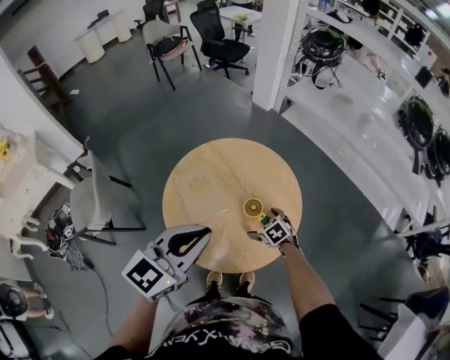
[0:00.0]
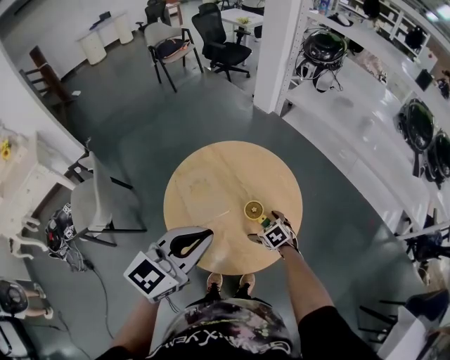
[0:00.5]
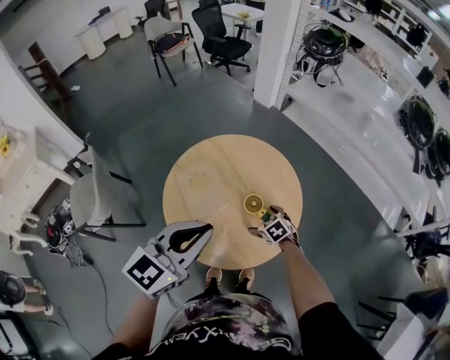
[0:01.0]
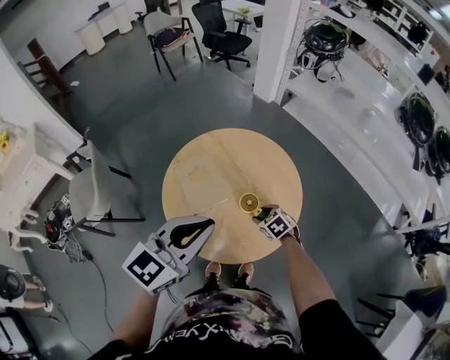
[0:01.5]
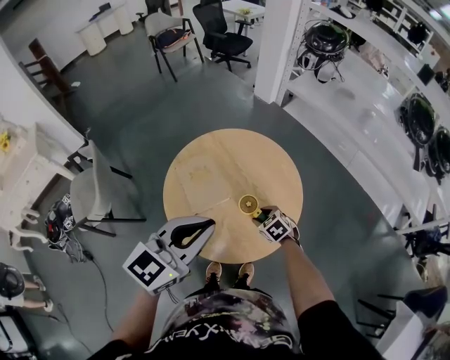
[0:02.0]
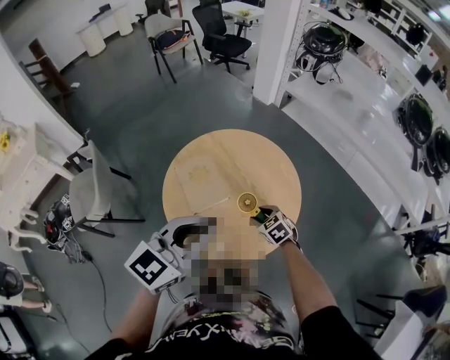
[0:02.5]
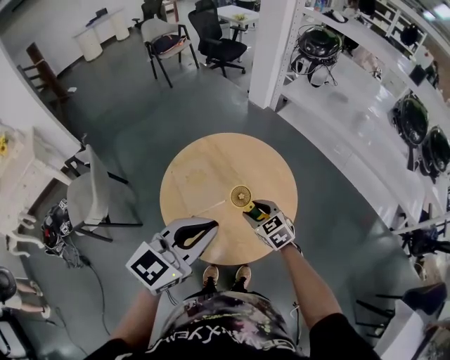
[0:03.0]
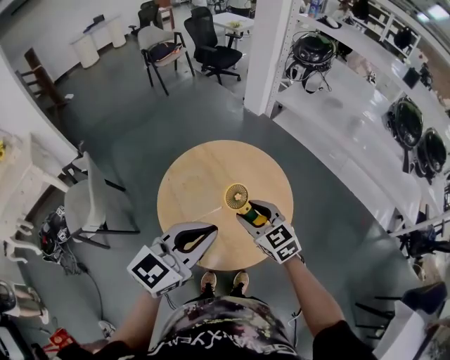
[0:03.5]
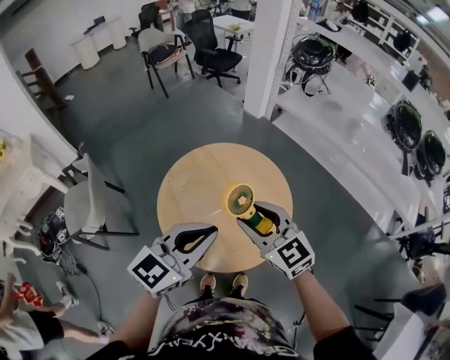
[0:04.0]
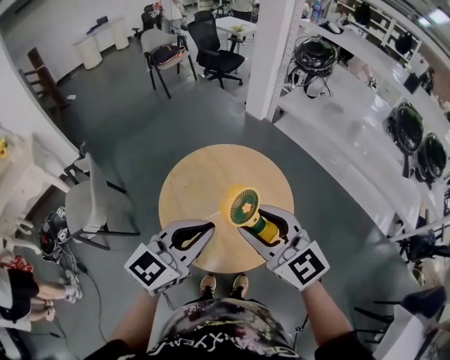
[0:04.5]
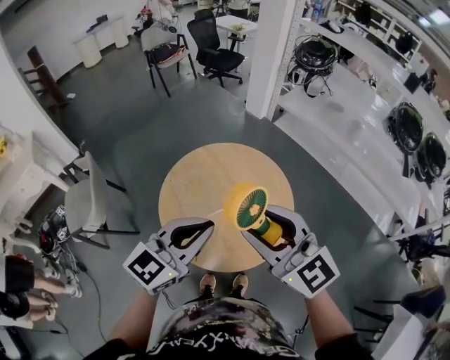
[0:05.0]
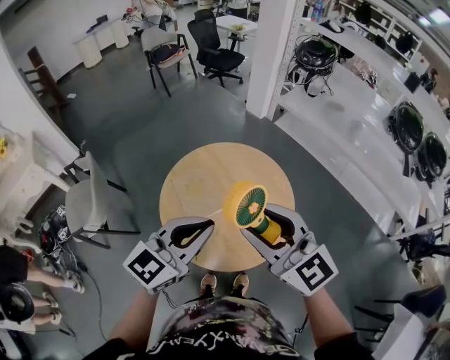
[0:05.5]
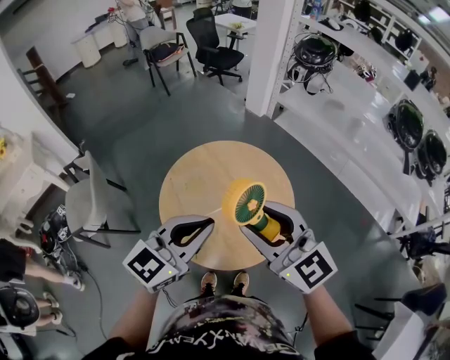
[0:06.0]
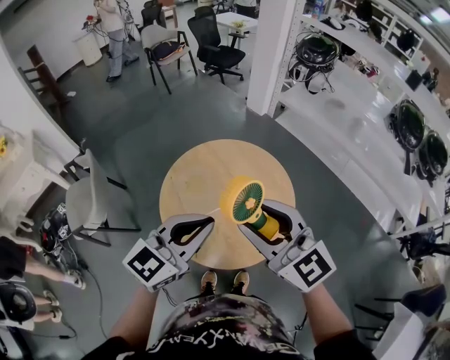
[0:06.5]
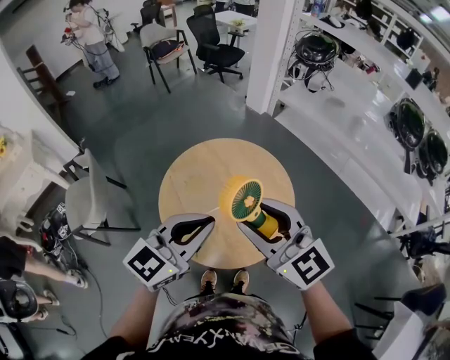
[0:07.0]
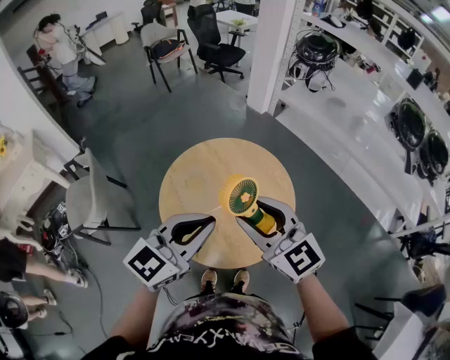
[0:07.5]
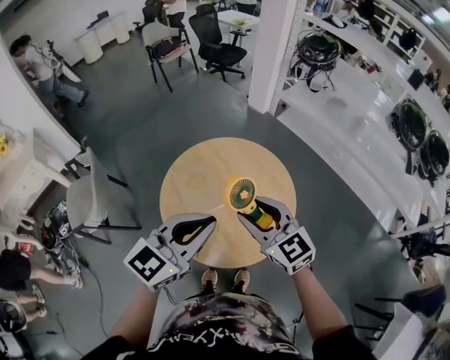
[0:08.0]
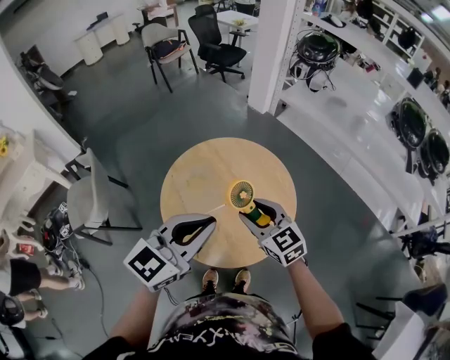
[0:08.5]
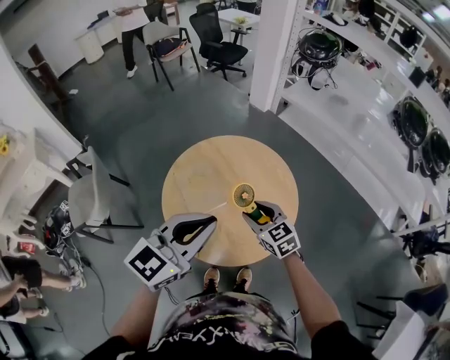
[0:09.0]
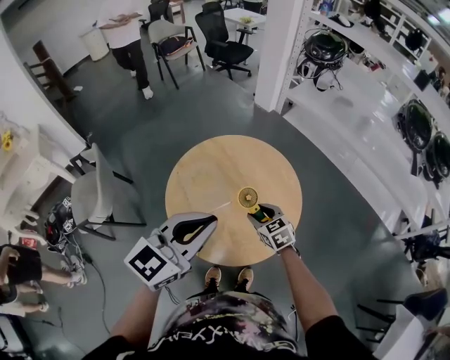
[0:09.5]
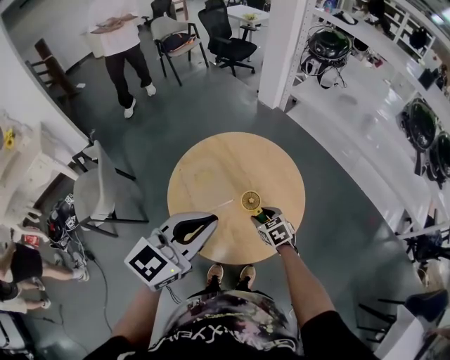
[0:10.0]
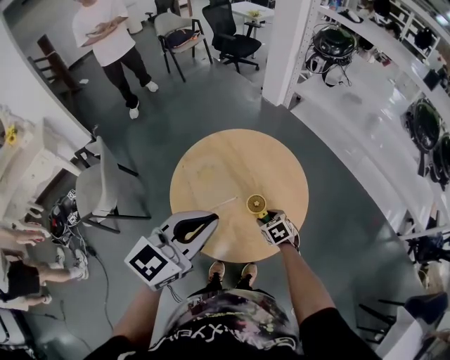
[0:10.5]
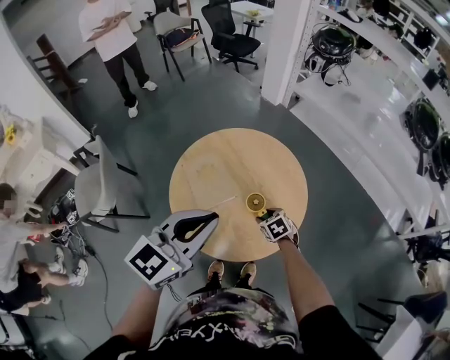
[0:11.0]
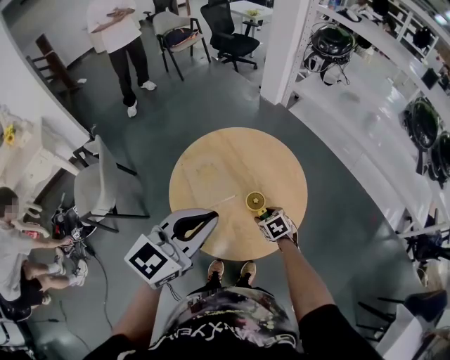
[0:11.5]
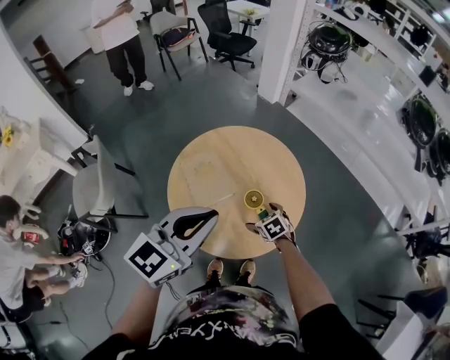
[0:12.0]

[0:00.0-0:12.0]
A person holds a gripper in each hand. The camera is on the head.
0:00.0 to 0:02.0: The right gripper closes.
0:02.0 to 0:04.0: The right gripper is displaced upward by some 35 cm, and points its fingers approximately 40 degrees further upward.
0:04.0 to 0:06.0: The right gripper goes roughly 10 cm upward.
0:06.0 to 0:08.0: The right gripper travels downward by about 10 cm.
0:08.0 to 0:10.0: The right gripper is displaced downward by about 30 cm, and angles its fingers downward, by some 30 degrees.
0:10.0 to 0:12.0: The right gripper opens.

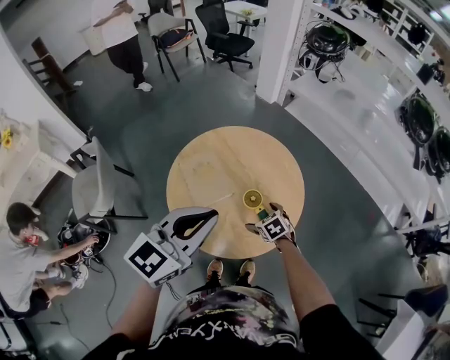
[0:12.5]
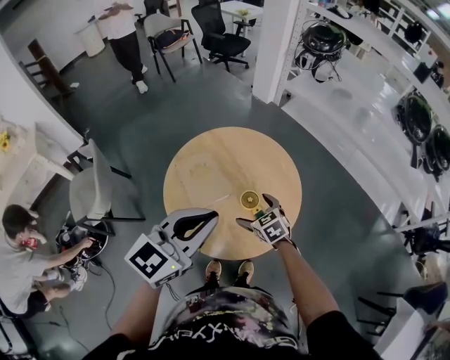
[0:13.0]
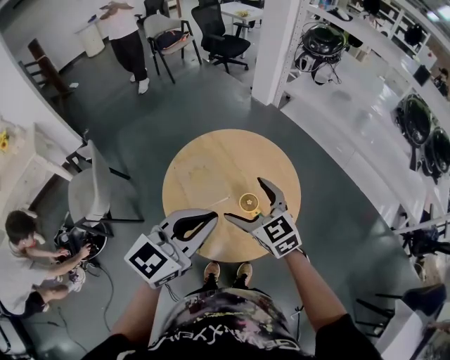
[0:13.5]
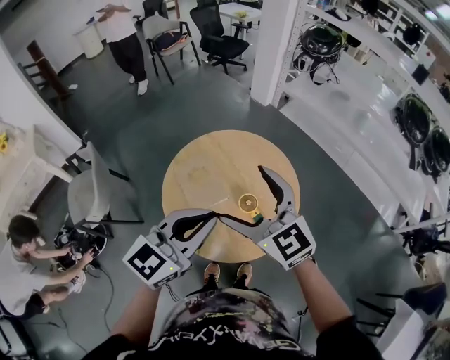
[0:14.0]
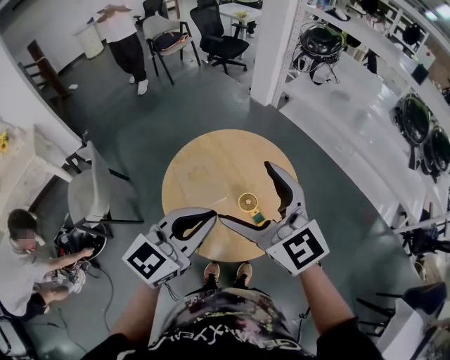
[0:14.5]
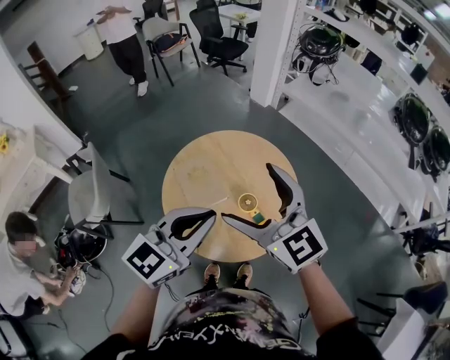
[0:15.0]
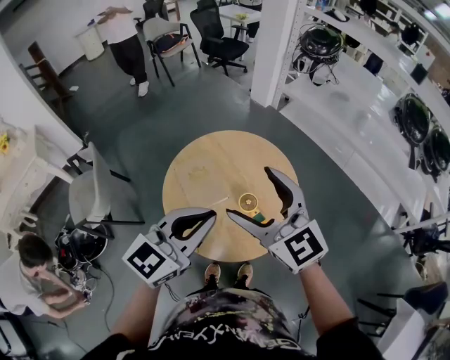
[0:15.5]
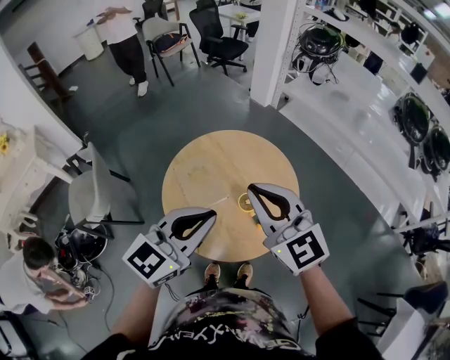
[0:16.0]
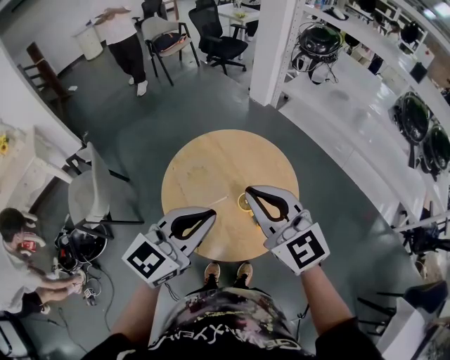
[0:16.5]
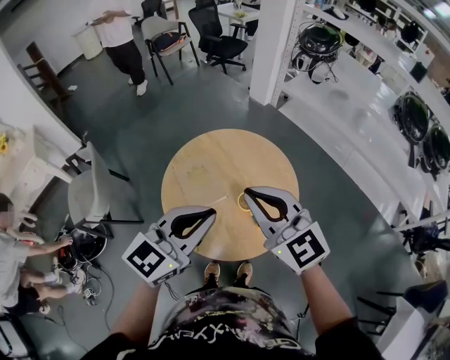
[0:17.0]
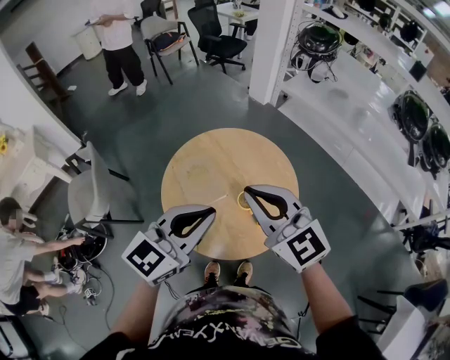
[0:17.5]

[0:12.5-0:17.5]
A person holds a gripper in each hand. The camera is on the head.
0:12.5 to 0:15.0: The right gripper travels upward by about 40 cm, and angles its fingers upward, by roughly 50 degrees.
0:15.0 to 0:17.5: The right gripper closes up.

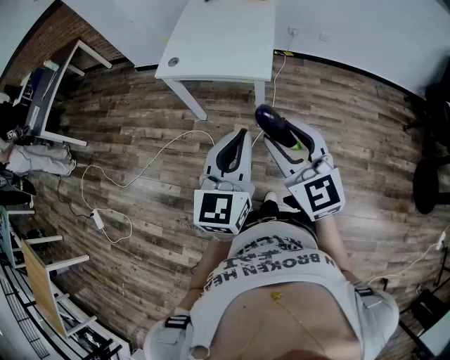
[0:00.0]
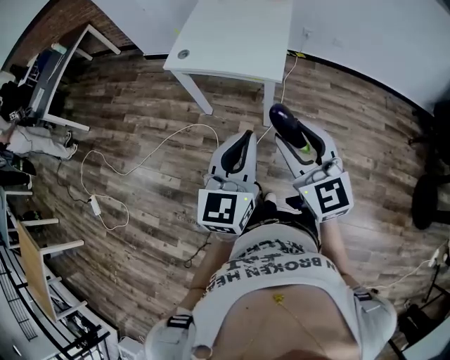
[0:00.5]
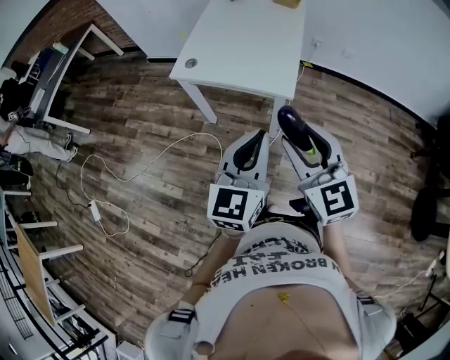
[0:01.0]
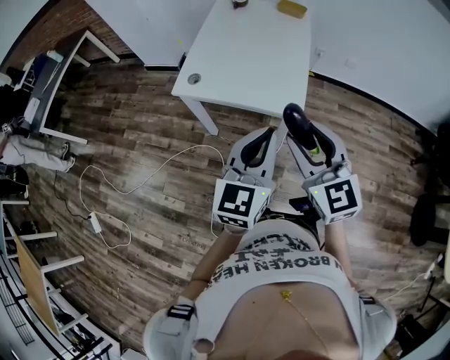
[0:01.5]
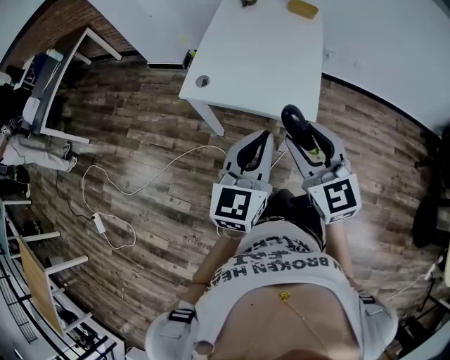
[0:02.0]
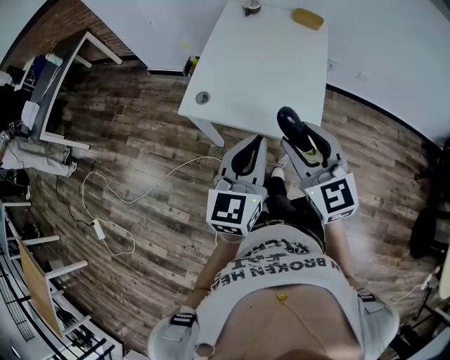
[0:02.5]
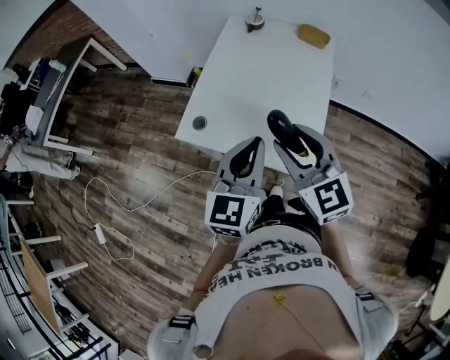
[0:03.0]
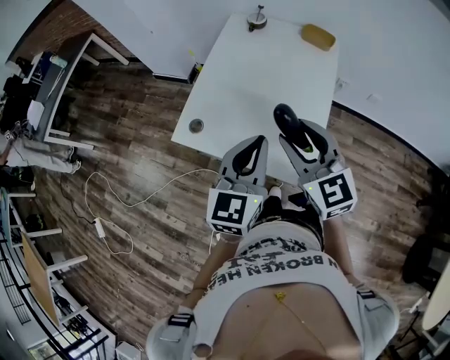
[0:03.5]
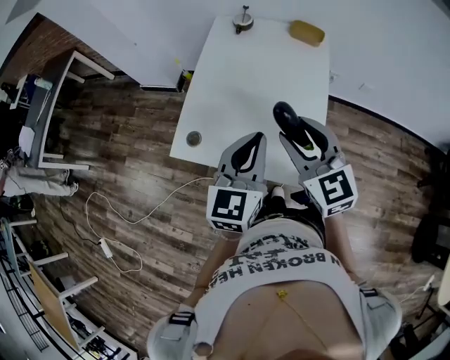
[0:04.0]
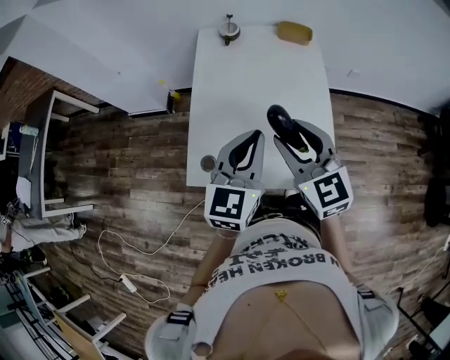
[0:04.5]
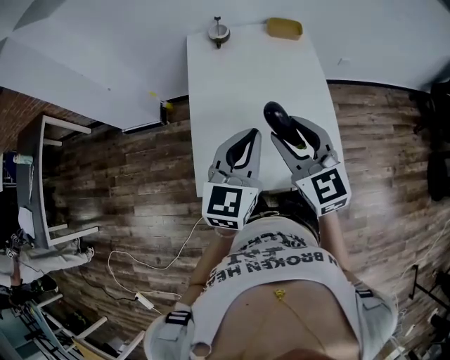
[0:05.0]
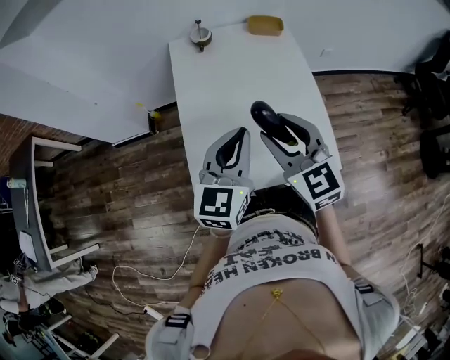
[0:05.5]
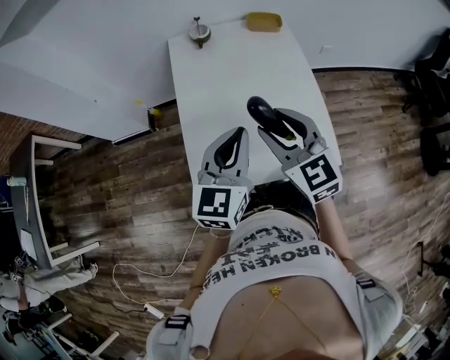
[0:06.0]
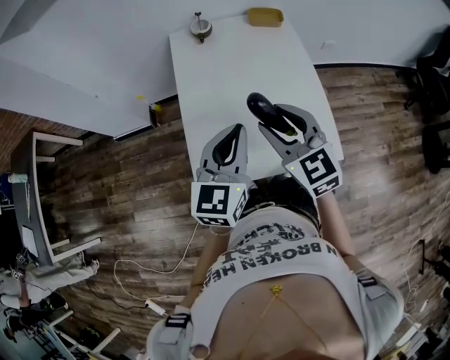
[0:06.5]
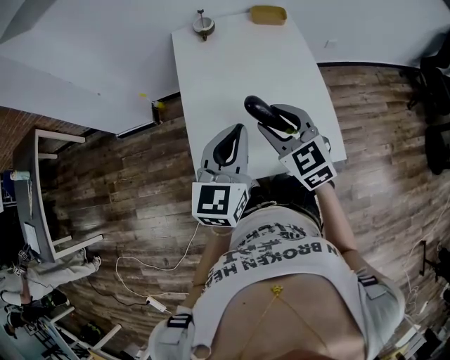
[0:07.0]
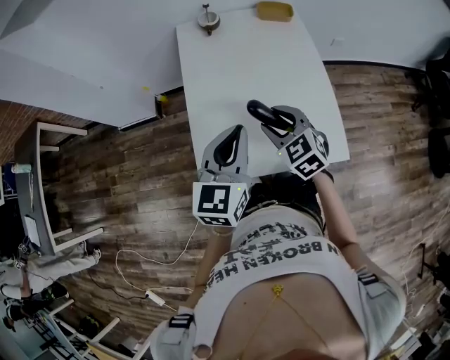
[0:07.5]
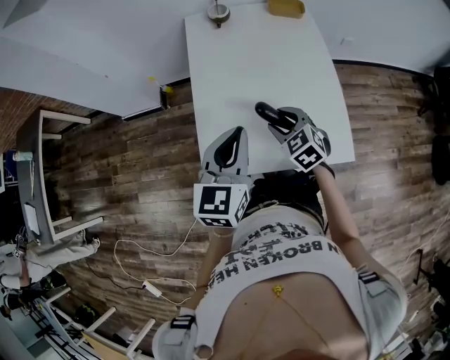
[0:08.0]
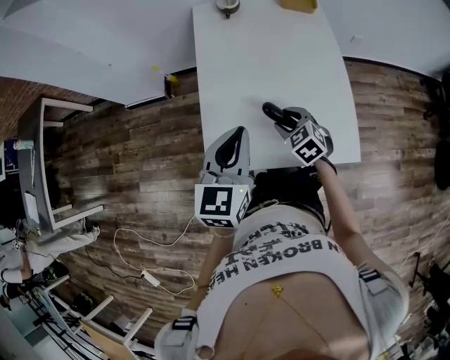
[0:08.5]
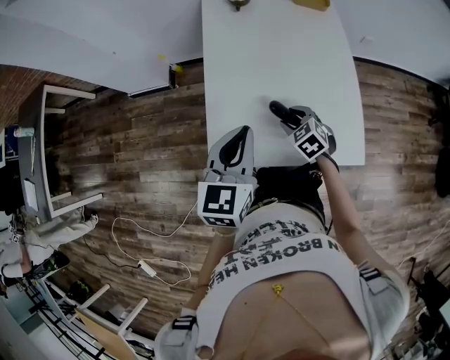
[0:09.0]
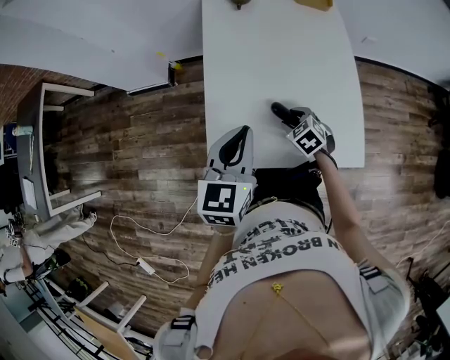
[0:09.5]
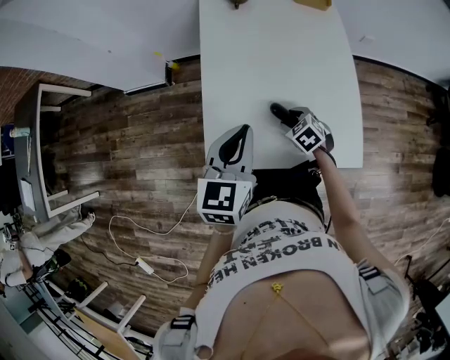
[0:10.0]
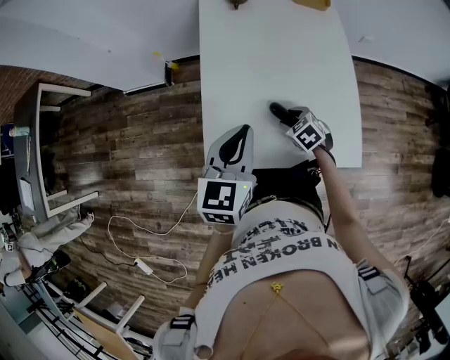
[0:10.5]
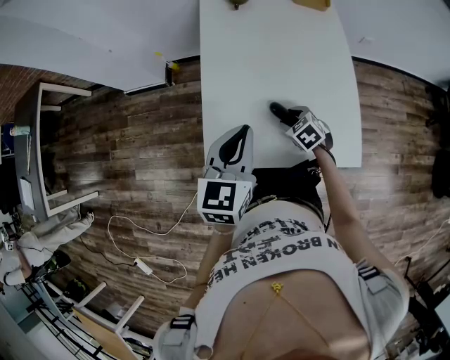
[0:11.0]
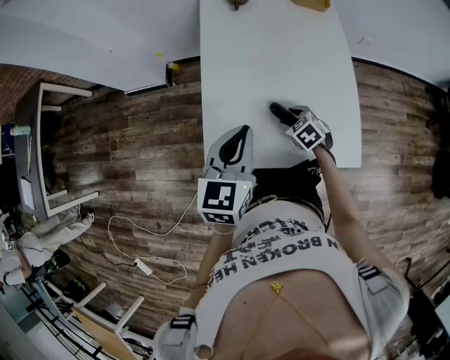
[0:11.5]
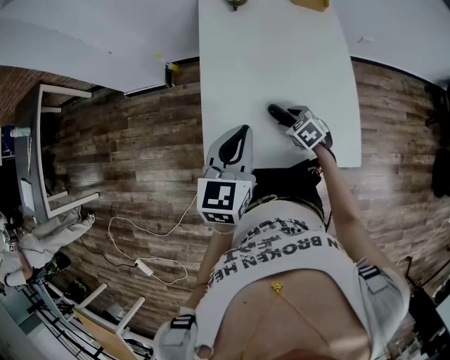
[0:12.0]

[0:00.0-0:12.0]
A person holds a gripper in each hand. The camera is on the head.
0:00.0 to 0:02.0: The grippers both shift forward by approximately 25 cm.
0:02.0 to 0:04.0: The grippers both shift forward by roughly 30 cm.
0:04.0 to 0:06.0: The right gripper travels to the left by about 15 cm, and changes its angle by approximately 20 degrees, while the left gripper shifts approximately 15 cm to the left and forward, and changes its angle by about 20 degrees.
0:06.0 to 0:08.0: The left gripper changes place by some 5 cm, while the right gripper heads downward, covering roughly 20 cm, and turns by roughly 30 degrees.
0:08.0 to 0:10.0: The right gripper shifts some 15 cm downward.
0:10.0 to 0:12.0: The grippers make only small movements.
